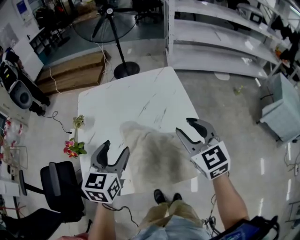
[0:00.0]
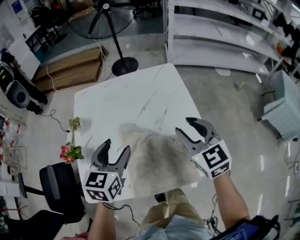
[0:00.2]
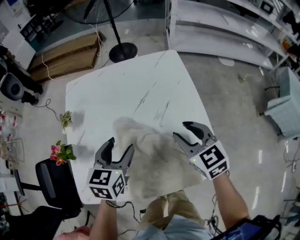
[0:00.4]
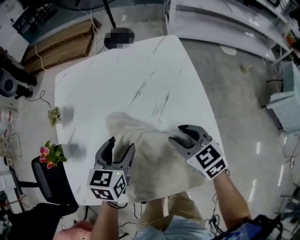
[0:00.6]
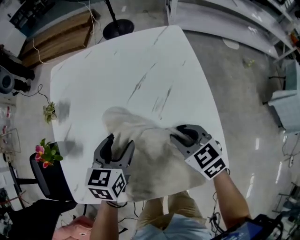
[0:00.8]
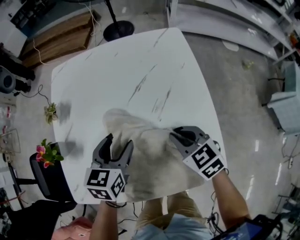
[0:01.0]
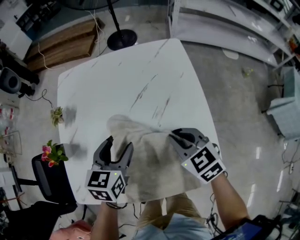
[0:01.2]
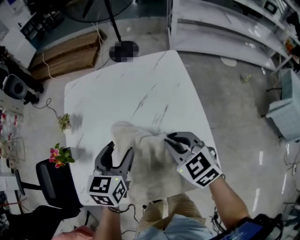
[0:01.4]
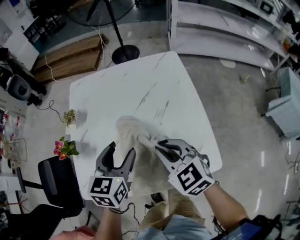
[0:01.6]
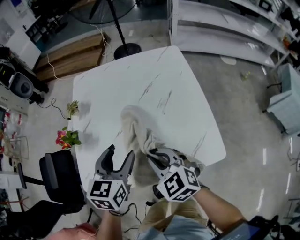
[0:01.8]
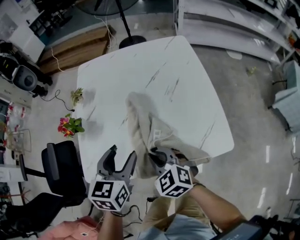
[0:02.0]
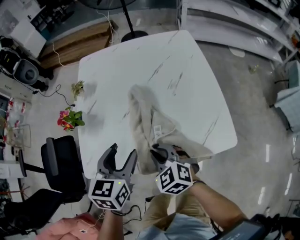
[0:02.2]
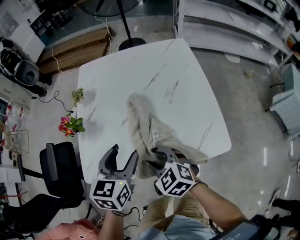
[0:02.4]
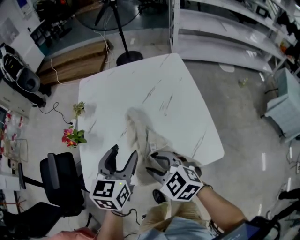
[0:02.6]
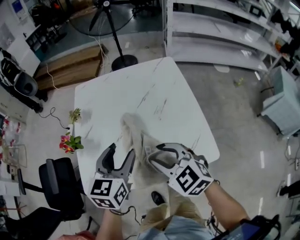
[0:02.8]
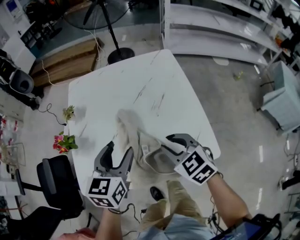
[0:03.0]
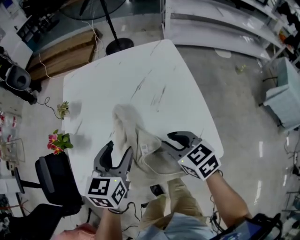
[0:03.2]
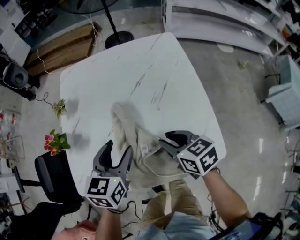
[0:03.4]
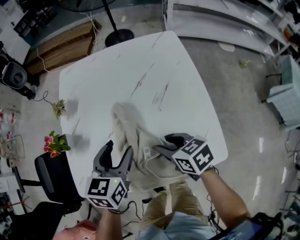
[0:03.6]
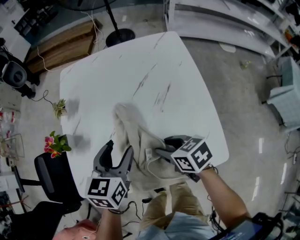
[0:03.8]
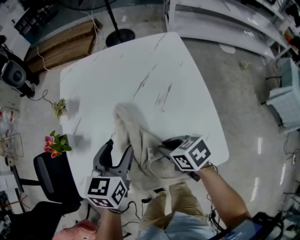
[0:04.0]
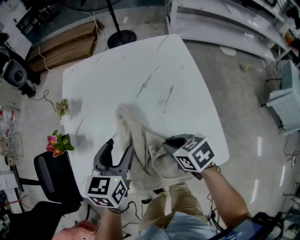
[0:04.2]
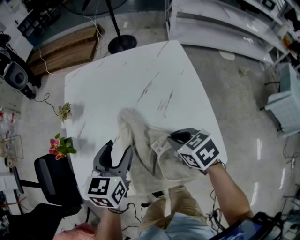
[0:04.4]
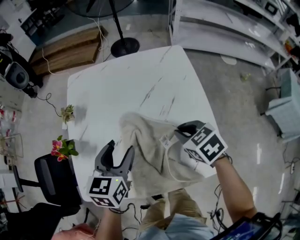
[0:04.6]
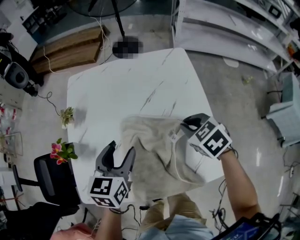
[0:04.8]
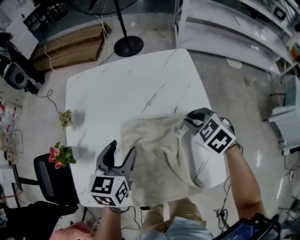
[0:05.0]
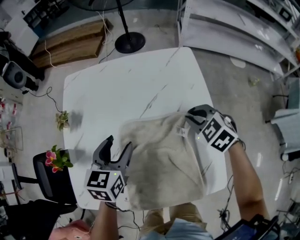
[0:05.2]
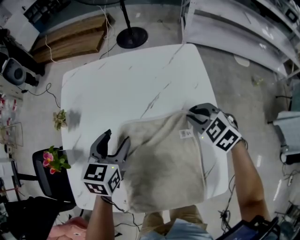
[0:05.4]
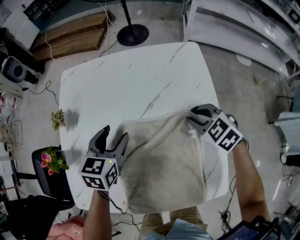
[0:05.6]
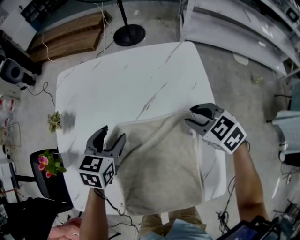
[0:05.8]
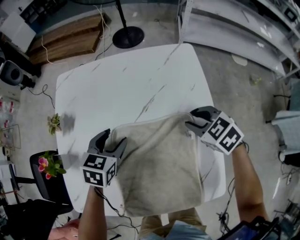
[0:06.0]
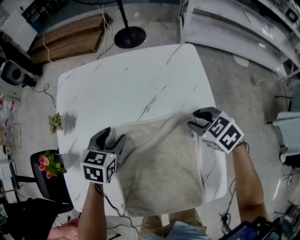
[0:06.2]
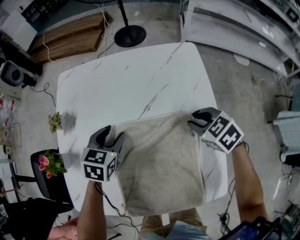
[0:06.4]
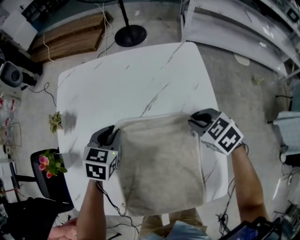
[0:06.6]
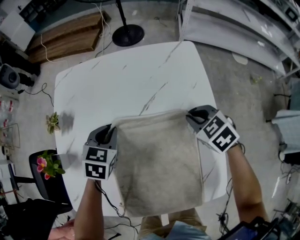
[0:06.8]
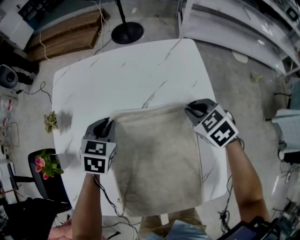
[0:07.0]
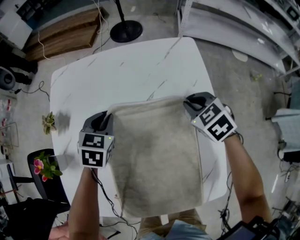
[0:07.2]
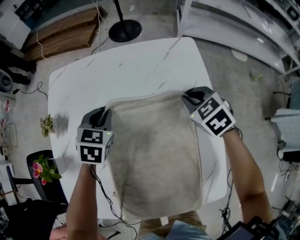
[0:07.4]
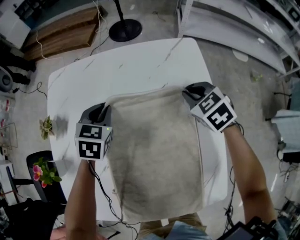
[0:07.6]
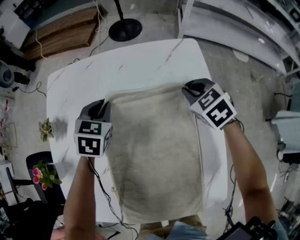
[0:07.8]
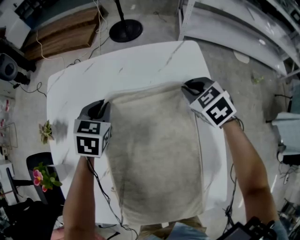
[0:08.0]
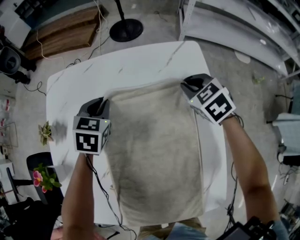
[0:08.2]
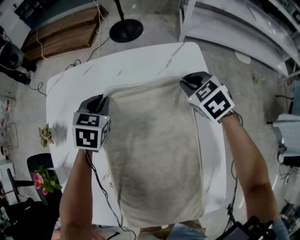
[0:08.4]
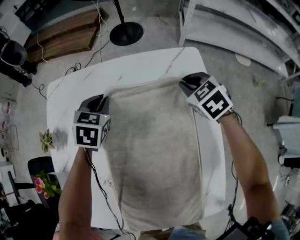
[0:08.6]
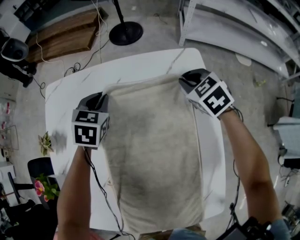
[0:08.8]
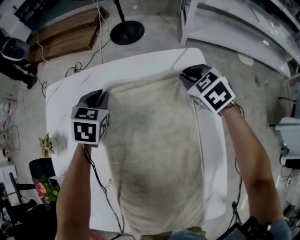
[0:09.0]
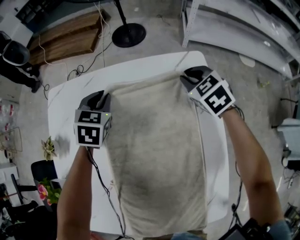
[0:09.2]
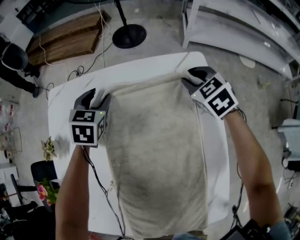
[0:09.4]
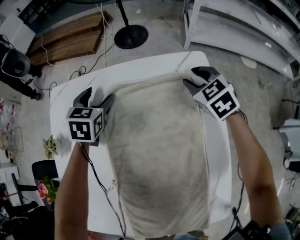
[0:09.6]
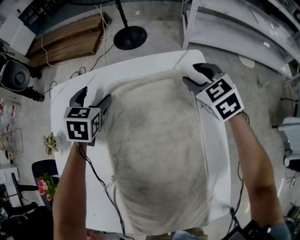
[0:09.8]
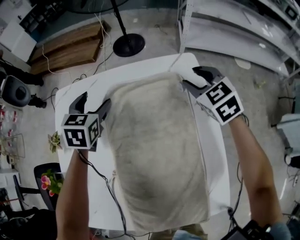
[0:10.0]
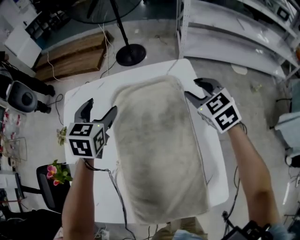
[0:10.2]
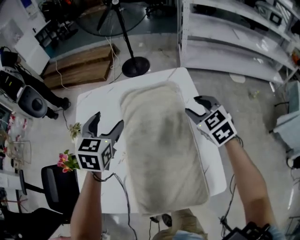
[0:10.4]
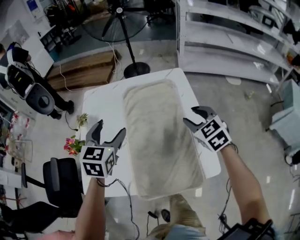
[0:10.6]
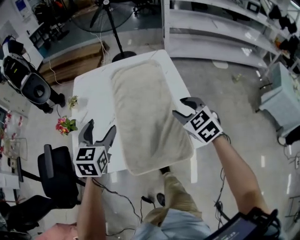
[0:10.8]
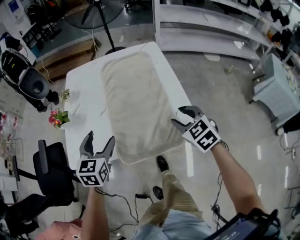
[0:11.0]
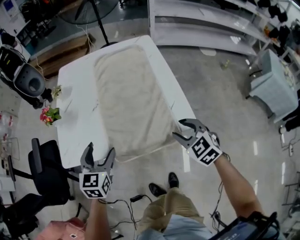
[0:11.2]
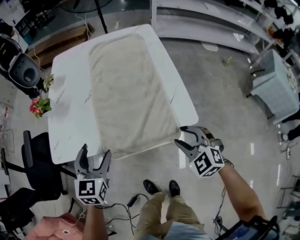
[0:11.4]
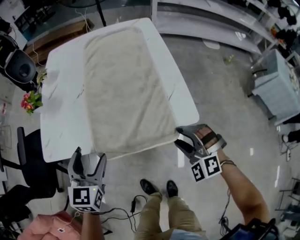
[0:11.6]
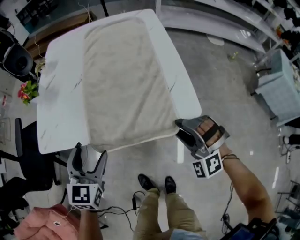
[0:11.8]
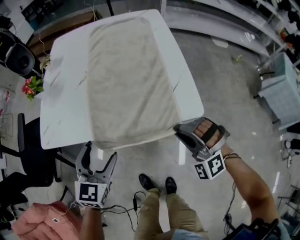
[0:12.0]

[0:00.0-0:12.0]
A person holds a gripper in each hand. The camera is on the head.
0:00.0 to 0:01.6: The right gripper travels to the left and downward by approximately 15 cm, turns by some 20 degrees, and closes; the left gripper travels downward by approximately 5 cm.
0:01.6 to 0:03.0: The right gripper goes up and down, approximately 15 cm each way, reversing 2 times.
0:03.0 to 0:04.4: The left gripper changes place by roughly 5 cm, while the right gripper moves downward, roughly 5 cm, rotates approximately 20 degrees, and opens, then closes once more.
0:04.4 to 0:06.0: The left gripper shifts about 15 cm forward and downward, while the right gripper travels forward and to the right by roughly 20 cm, swivels some 20 degrees, and opens up.
0:06.0 to 0:07.6: Both grippers move forward, about 10 cm. The left gripper closes its fingers, while the right gripper closes up.
0:07.6 to 0:09.0: The grippers both shift forward by approximately 10 cm.
0:09.0 to 0:10.4: Both grippers move backward and upward, some 25 cm. The right gripper opens up. Meanwhile the left gripper opens up.
0:10.4 to 0:12.0: The two grippers travel together, backward, about 40 cm. The right gripper rotates around the line of its fingers by some 60 degrees, counterclockwise from behind, and closes up.

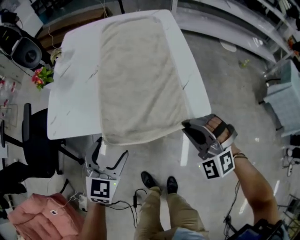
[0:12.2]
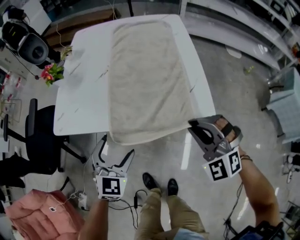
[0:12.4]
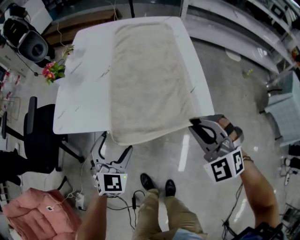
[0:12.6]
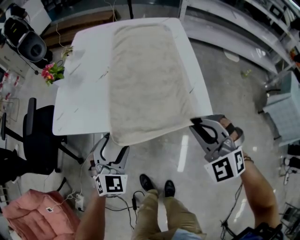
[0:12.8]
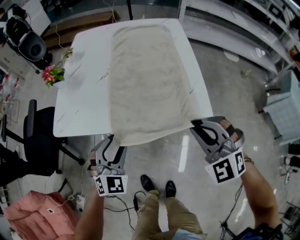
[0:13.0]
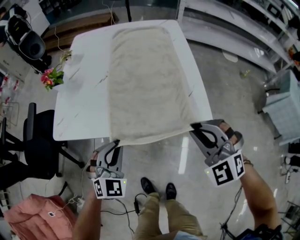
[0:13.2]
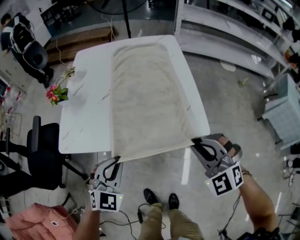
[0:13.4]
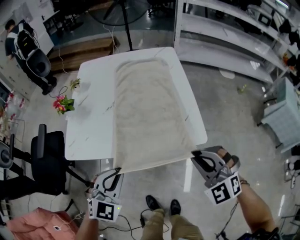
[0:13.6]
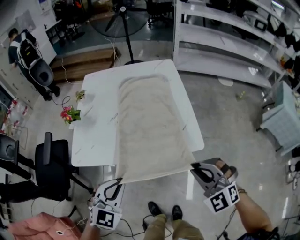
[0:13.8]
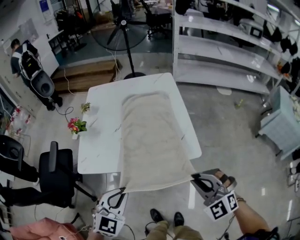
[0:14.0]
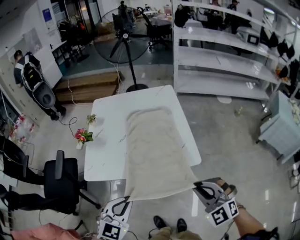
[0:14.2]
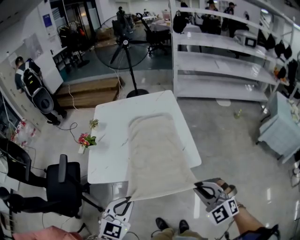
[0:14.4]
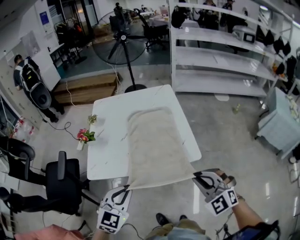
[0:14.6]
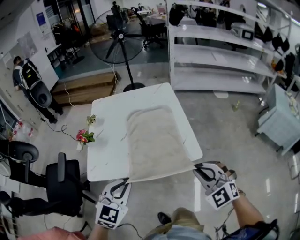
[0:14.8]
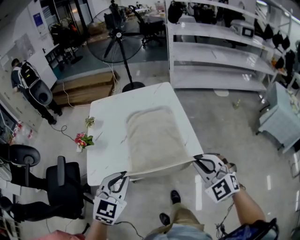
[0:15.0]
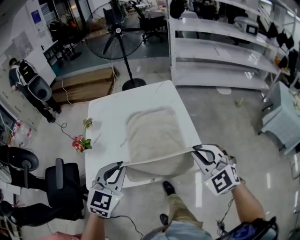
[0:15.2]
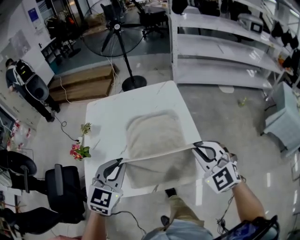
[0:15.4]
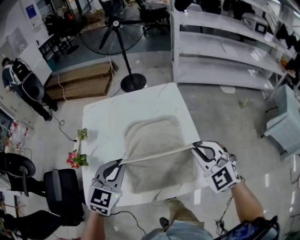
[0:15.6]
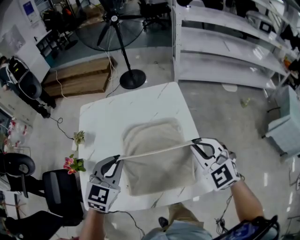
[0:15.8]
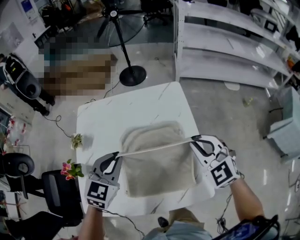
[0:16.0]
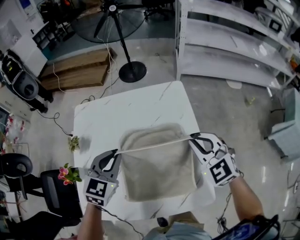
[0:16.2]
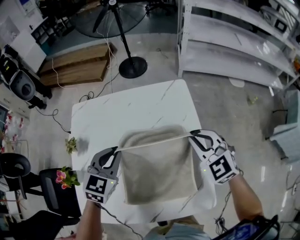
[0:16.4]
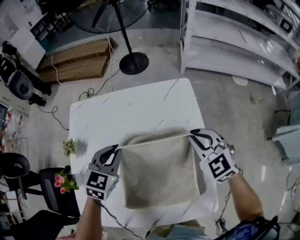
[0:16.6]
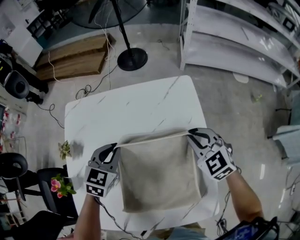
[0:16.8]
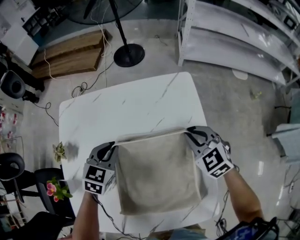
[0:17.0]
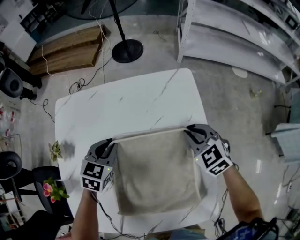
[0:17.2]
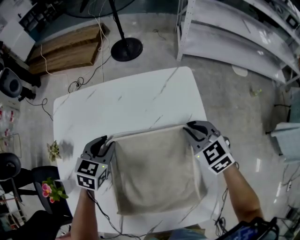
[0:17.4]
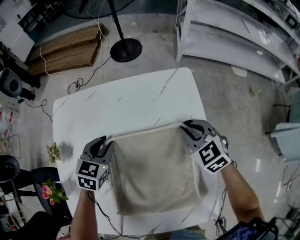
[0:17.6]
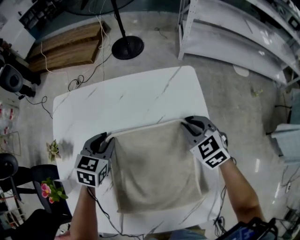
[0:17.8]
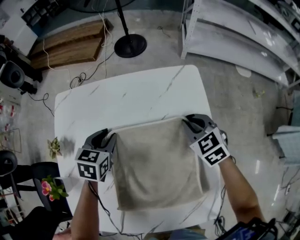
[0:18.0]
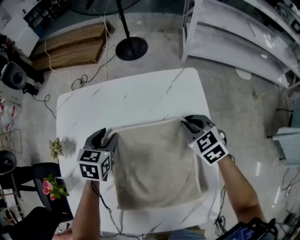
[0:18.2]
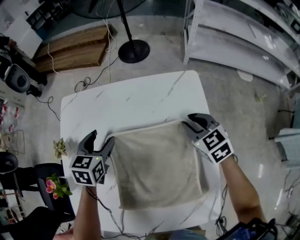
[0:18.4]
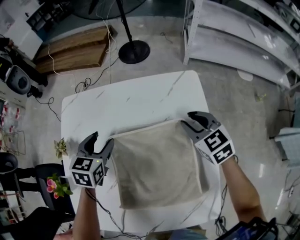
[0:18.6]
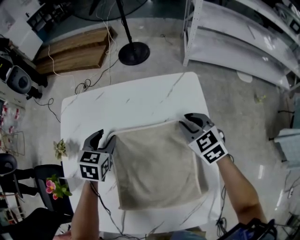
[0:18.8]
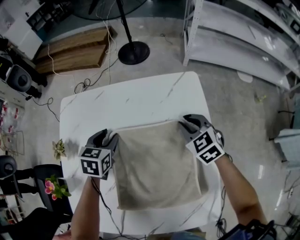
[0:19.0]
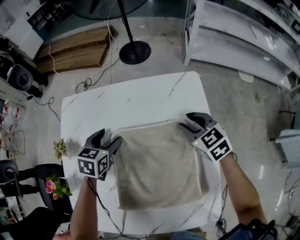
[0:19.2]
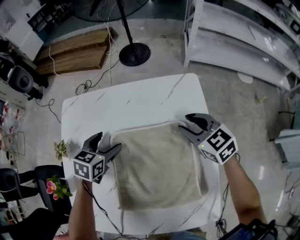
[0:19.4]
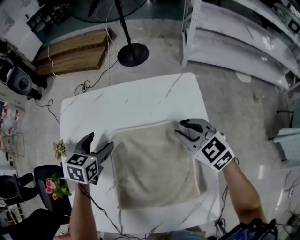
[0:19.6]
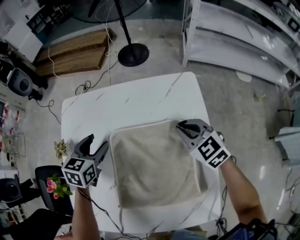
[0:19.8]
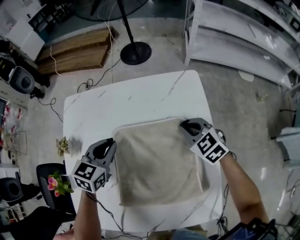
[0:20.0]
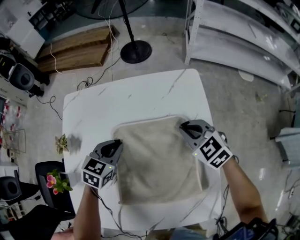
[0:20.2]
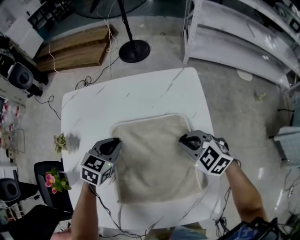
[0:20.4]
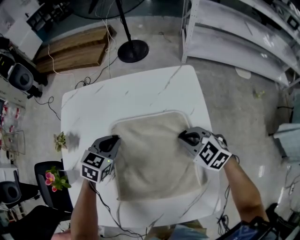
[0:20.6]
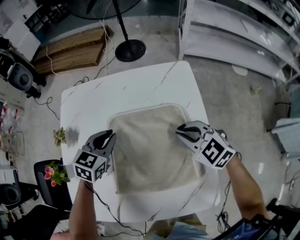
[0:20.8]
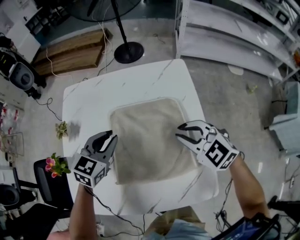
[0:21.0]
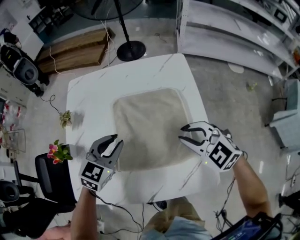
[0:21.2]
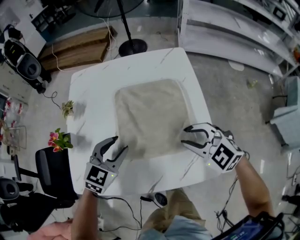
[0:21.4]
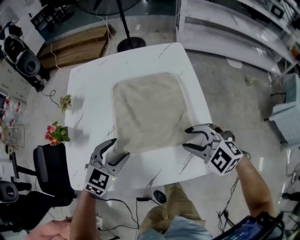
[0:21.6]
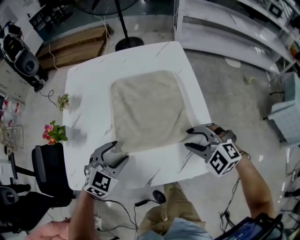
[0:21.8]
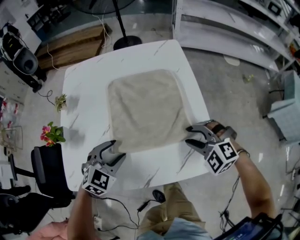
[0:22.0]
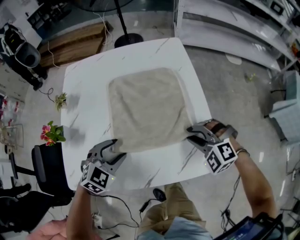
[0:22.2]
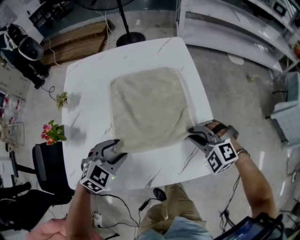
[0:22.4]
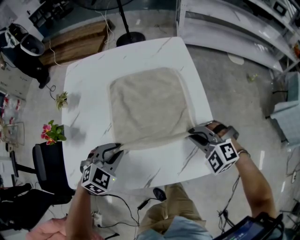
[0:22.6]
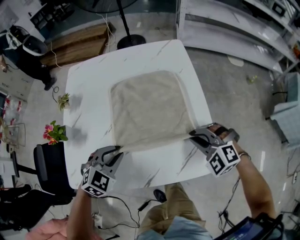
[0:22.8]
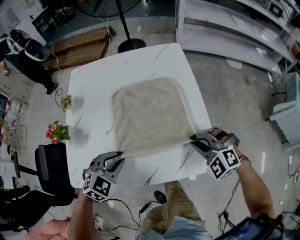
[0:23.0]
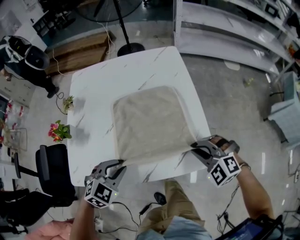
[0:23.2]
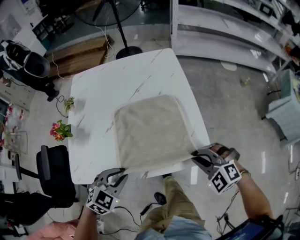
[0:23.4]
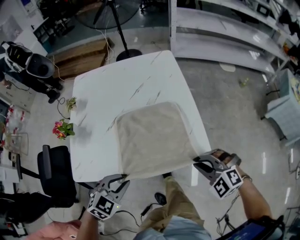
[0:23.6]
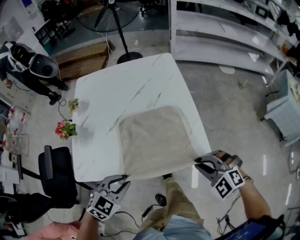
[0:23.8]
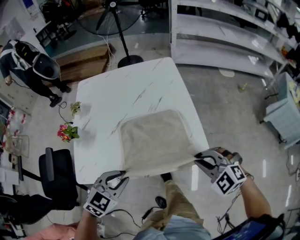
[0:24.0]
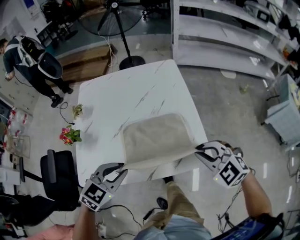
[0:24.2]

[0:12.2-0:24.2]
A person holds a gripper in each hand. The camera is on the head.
0:12.2 to 0:13.8: The left gripper heads upward, covering approximately 10 cm, and closes up. Meanwhile the right gripper is displaced upward and backward by some 10 cm.
0:13.8 to 0:15.2: Both grippers travel together forward and upward, about 15 cm.
0:15.2 to 0:16.6: The grippers both shift forward by approximately 35 cm.
0:16.6 to 0:18.2: The grippers both shift downward and forward by about 15 cm. The left gripper changes its angle by approximately 20 degrees, and opens its fingers.
0:18.2 to 0:19.8: The right gripper moves up and down over approximately 5 cm, changing direction 2 times, and opens and closes again, while the left gripper moves up and down over approximately 5 cm, changing direction 2 times.
0:19.8 to 0:21.2: Both grippers travel together backward, about 20 cm. The left gripper changes its angle by about 20 degrees, and closes.
0:21.2 to 0:22.6: The left gripper shifts approximately 15 cm backward and downward, rotates approximately 30 degrees, and opens, then closes again. The right gripper goes approximately 10 cm downward and backward, swivels approximately 30 degrees, and opens, then closes once more.
0:22.6 to 0:24.2: The two grippers go about 15 cm upward and backward. The right gripper turns by roughly 20 degrees.
